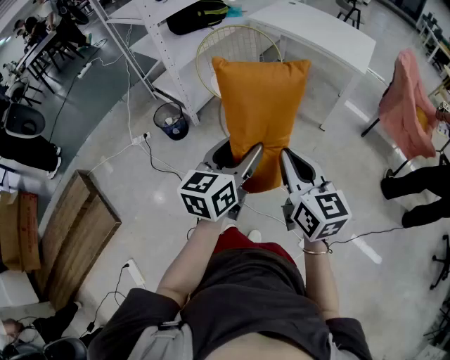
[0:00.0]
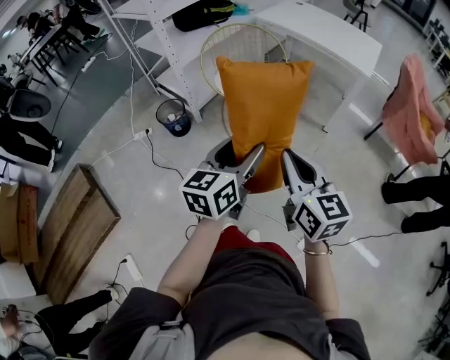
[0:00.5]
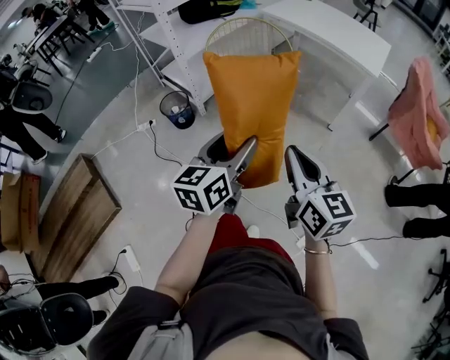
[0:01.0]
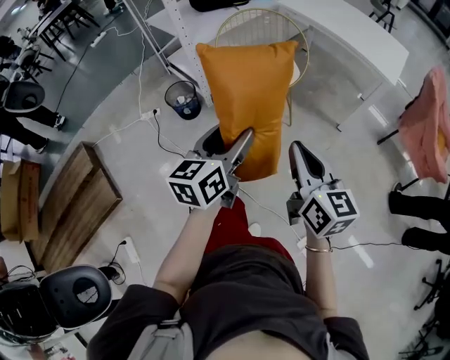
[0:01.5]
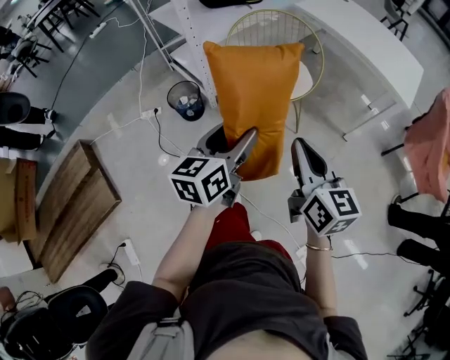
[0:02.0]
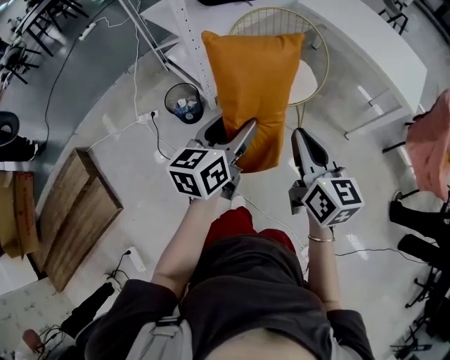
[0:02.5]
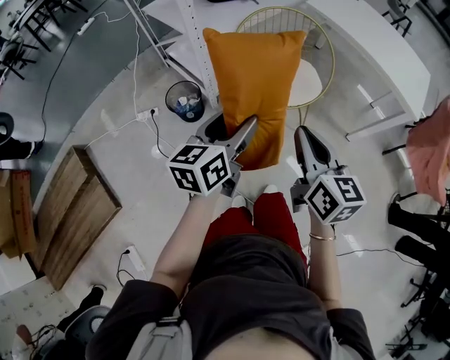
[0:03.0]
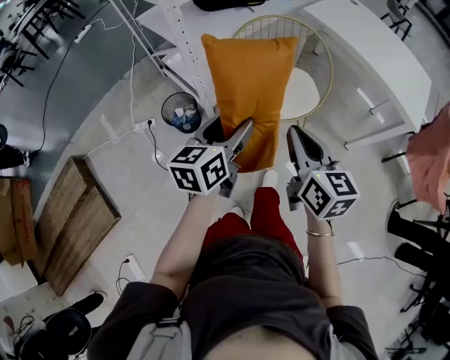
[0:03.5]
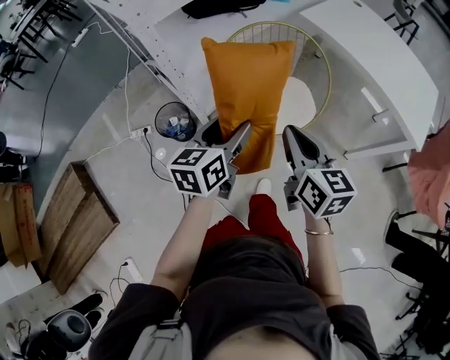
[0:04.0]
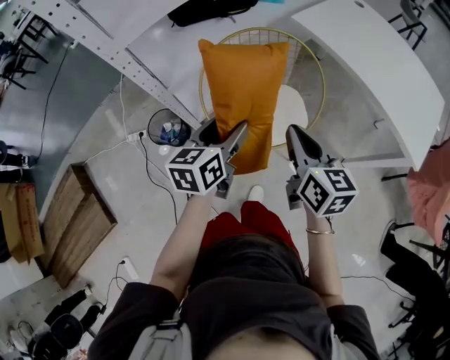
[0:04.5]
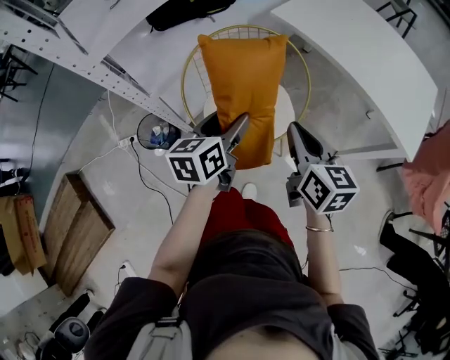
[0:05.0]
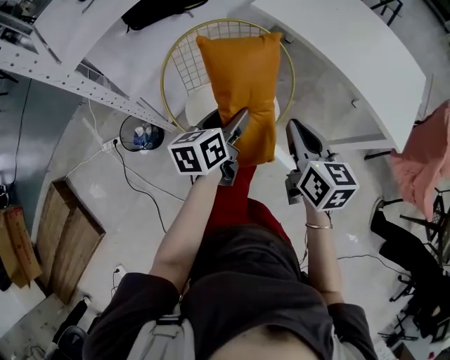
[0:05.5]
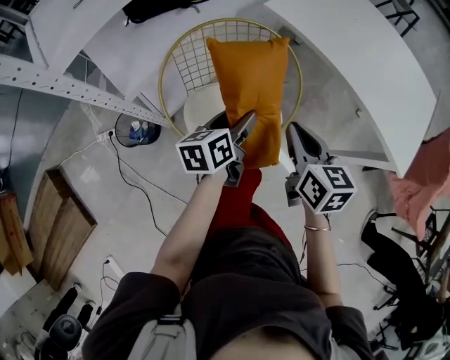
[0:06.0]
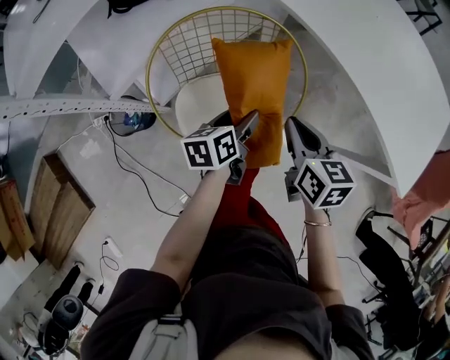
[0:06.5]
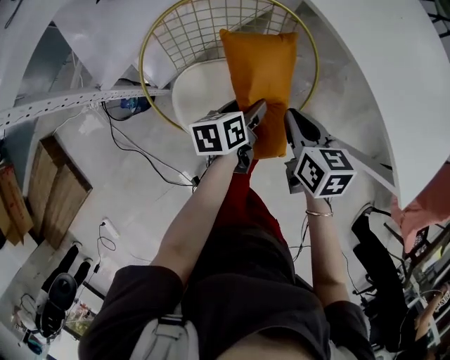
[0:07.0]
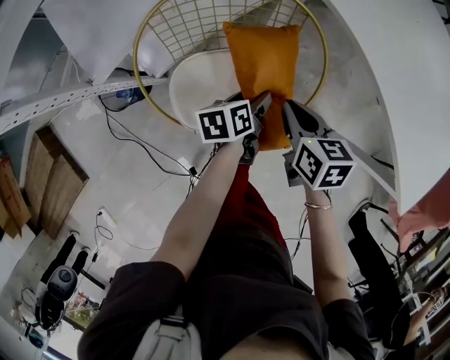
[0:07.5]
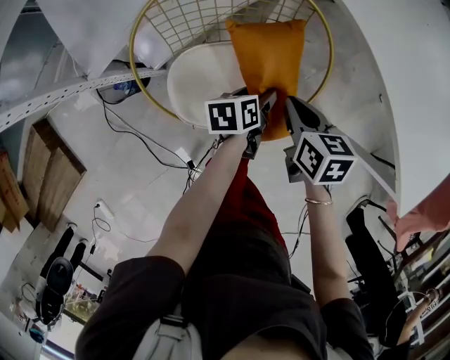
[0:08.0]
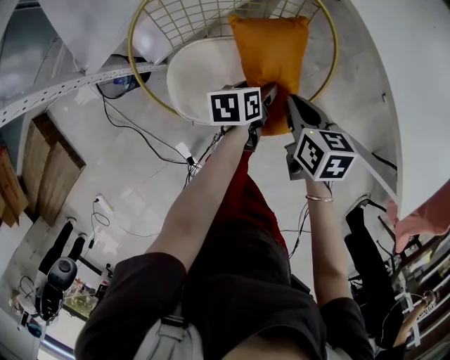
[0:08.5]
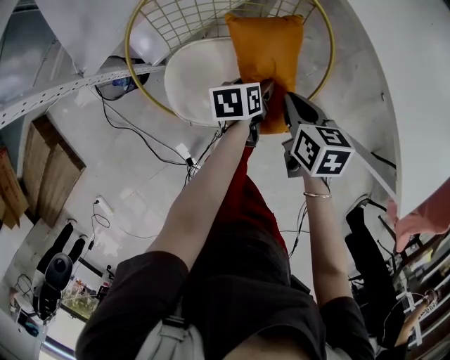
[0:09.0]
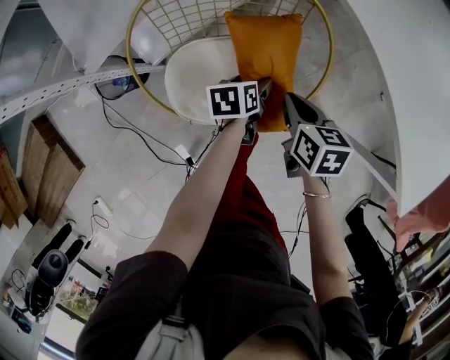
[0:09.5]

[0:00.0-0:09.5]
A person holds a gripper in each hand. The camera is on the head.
0:00.0 to 0:02.0: The left gripper travels forward and to the left by some 20 cm, while the right gripper heads forward, covering roughly 20 cm.
0:02.0 to 0:04.0: The two grippers go about 30 cm forward.
0:04.0 to 0:05.5: The right gripper heads to the right and forward, covering about 20 cm; the left gripper travels to the right, forward and downward by about 20 cm.
0:05.5 to 0:07.5: The two grippers go roughly 25 cm downward and forward. The right gripper rotates about 30 degrees. The left gripper turns by roughly 30 degrees.
0:07.5 to 0:09.5: The left gripper moves downward, some 5 cm.

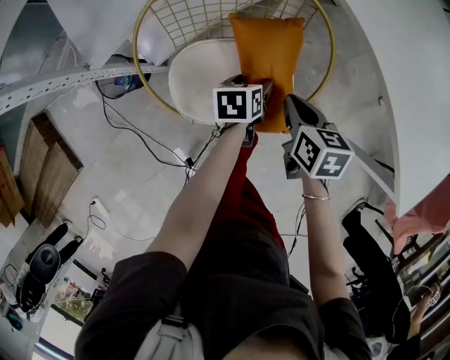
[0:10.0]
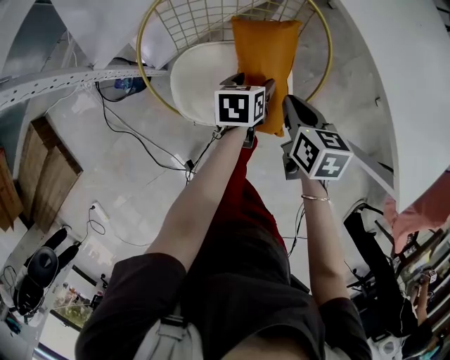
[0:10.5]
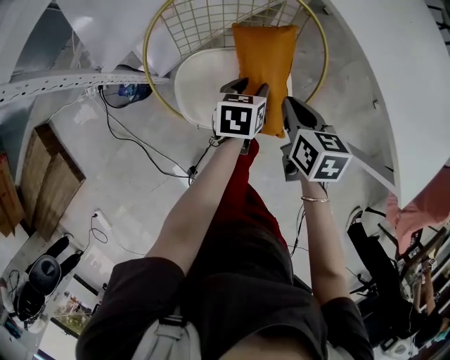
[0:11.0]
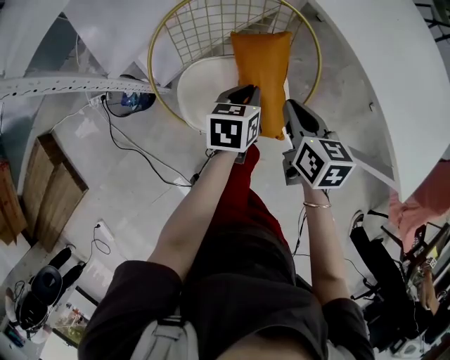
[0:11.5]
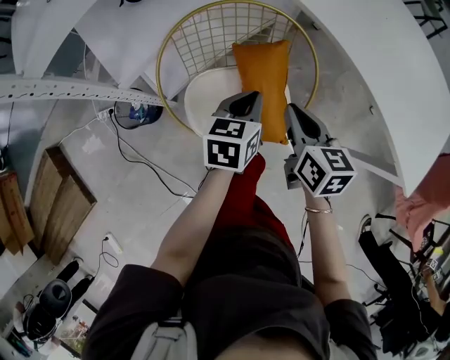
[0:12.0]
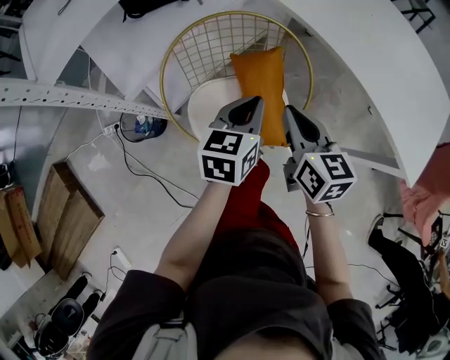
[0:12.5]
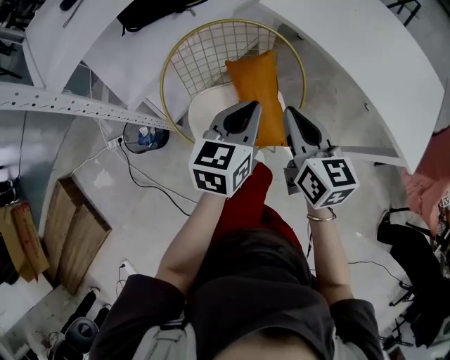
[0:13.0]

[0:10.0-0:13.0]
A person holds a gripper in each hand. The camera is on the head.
0:10.0 to 0:11.5: Both grippers travel together upward, about 10 cm. The left gripper closes its fingers.
0:11.5 to 0:13.0: The two grippers go roughly 15 cm upward. The left gripper turns by some 30 degrees. The right gripper swivels approximately 20 degrees.

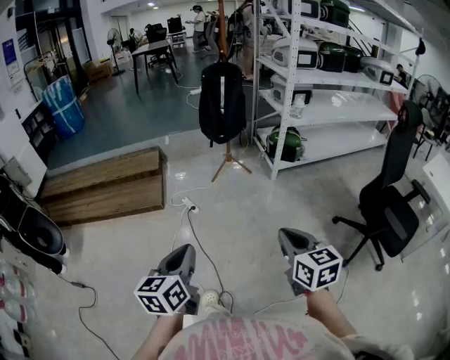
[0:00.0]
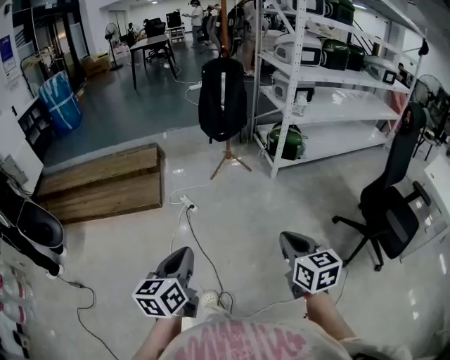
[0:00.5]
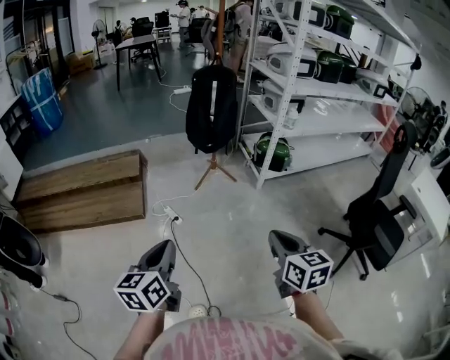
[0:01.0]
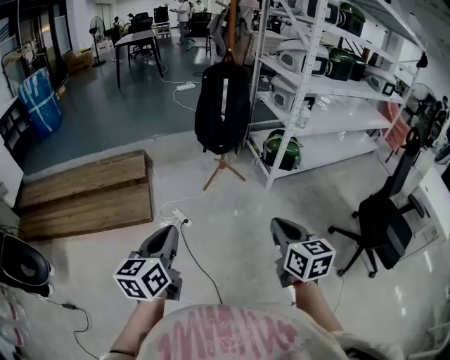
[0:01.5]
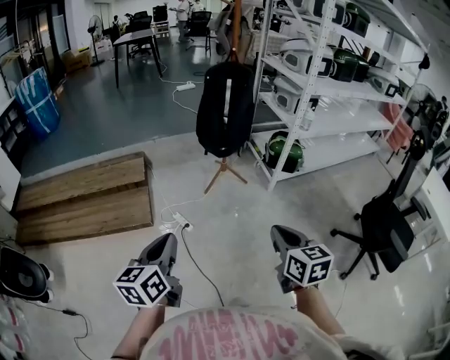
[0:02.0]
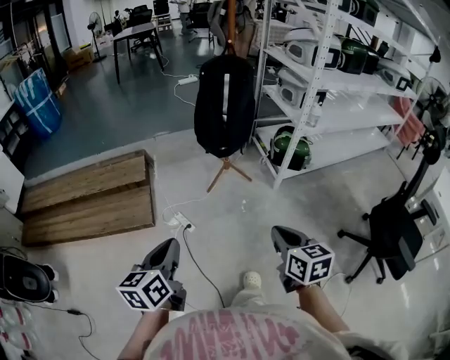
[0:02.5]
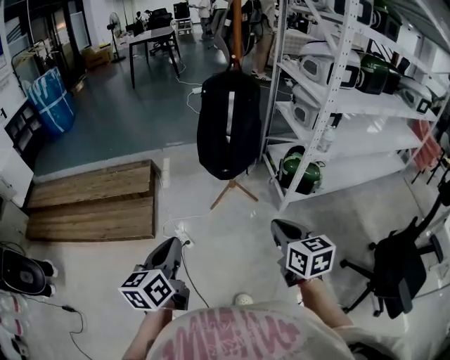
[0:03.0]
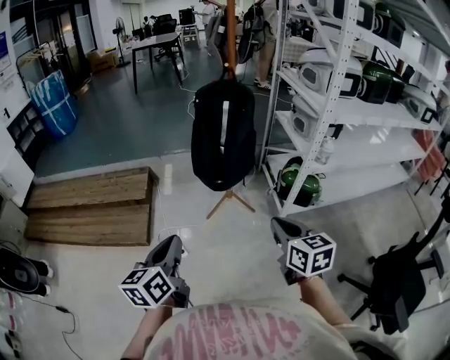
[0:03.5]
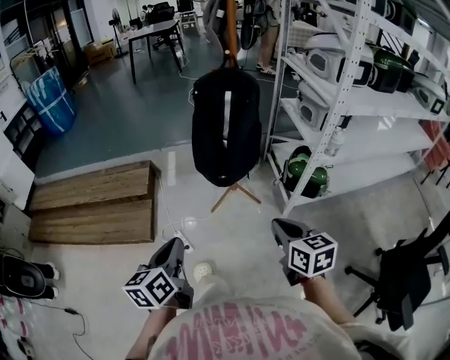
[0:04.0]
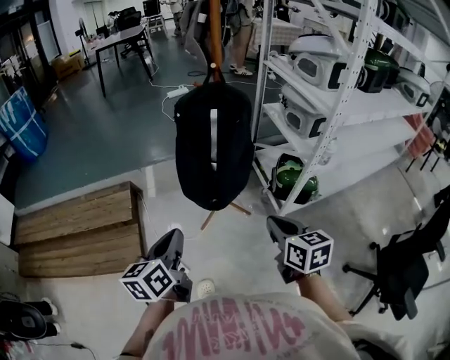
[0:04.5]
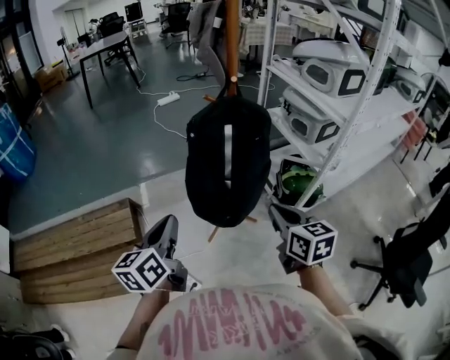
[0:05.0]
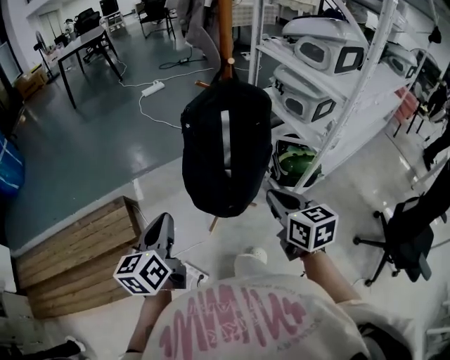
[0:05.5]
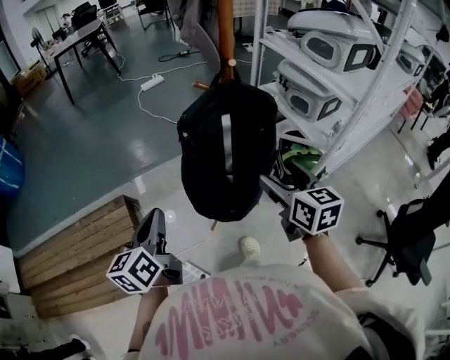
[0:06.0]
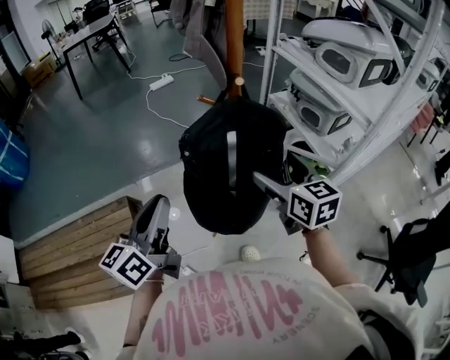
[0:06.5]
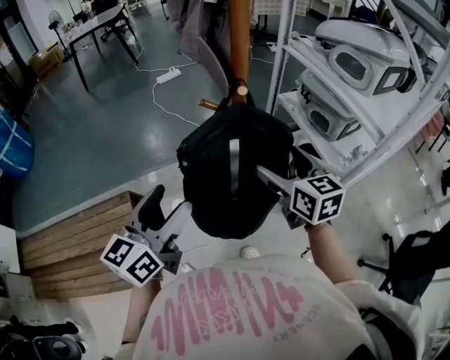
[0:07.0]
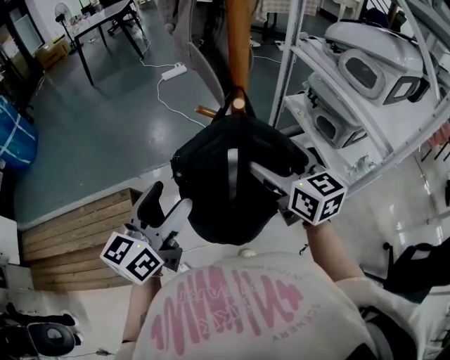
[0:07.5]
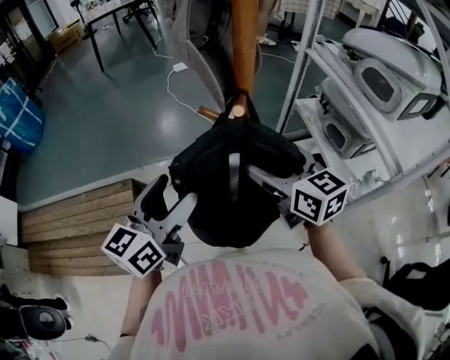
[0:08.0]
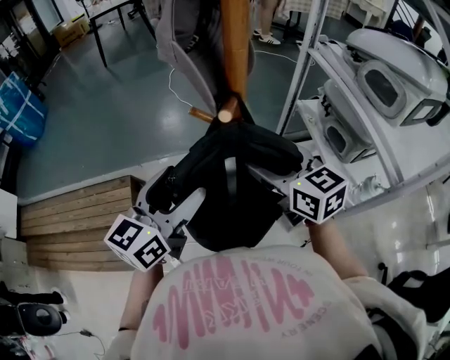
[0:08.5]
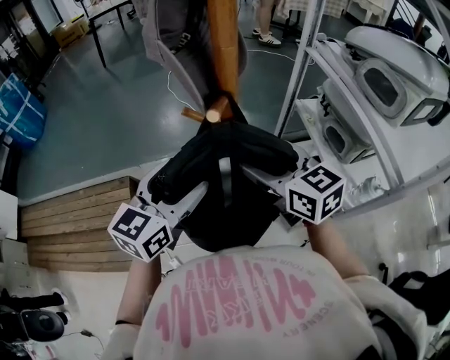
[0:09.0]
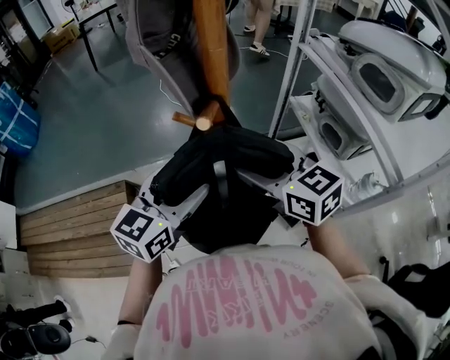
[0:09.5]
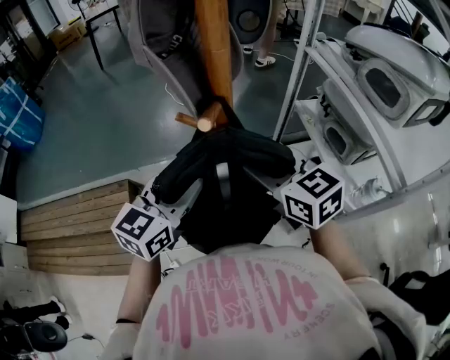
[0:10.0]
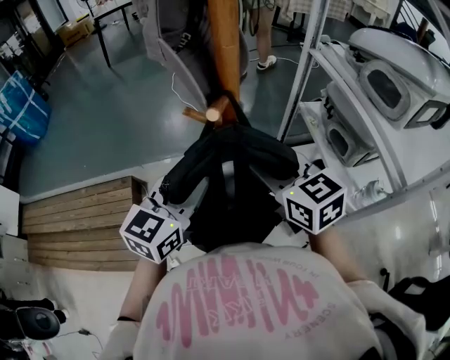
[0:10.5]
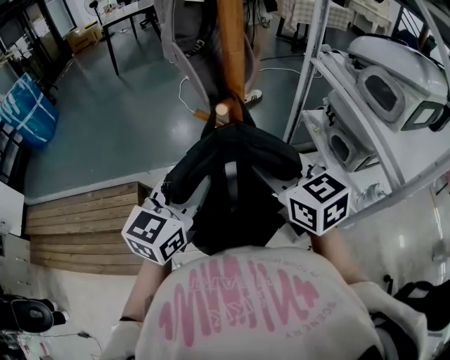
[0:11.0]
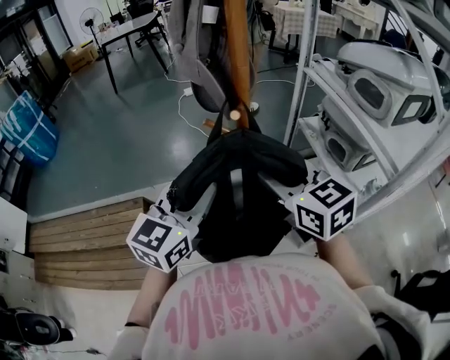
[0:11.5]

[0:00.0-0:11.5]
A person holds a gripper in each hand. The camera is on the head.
0:00.0 to 0:02.0: The two grippers go approximately 30 cm forward and to the left.
0:02.0 to 0:04.0: The two grippers go roughly 30 cm forward and to the right.
0:04.0 to 0:06.0: The two grippers go about 35 cm forward. The right gripper swivels roughly 20 degrees, and opens.
0:06.0 to 0:07.5: The left gripper heads forward, to the right and upward, covering about 15 cm, and opens up. The right gripper heads forward, covering some 15 cm.
0:07.5 to 0:09.5: The left gripper is displaced to the right and forward by approximately 10 cm.
0:09.5 to 0:11.5: The left gripper heads upward and backward, covering approximately 10 cm, and closes its fingers. The right gripper shifts approximately 10 cm backward and upward, and closes.

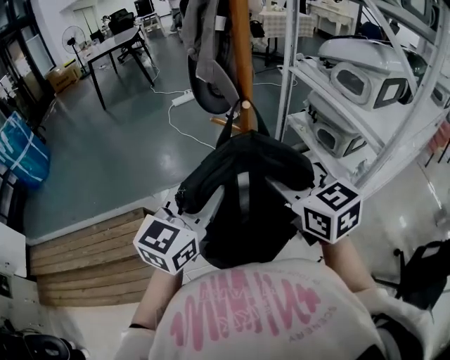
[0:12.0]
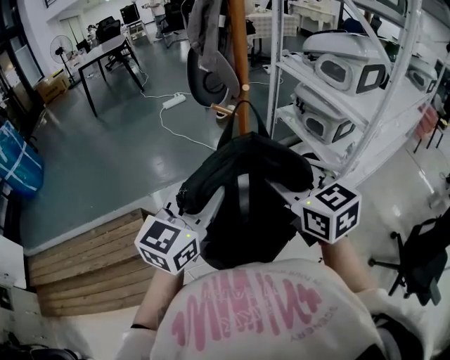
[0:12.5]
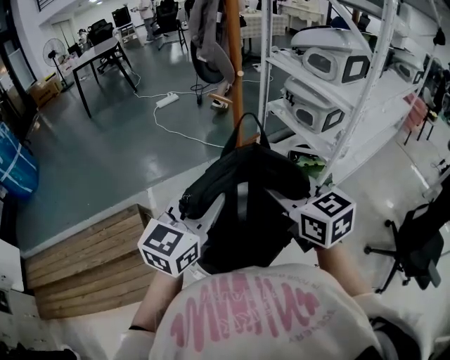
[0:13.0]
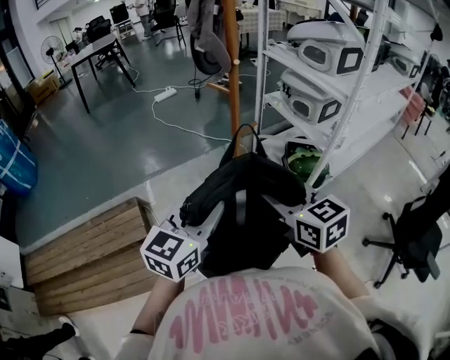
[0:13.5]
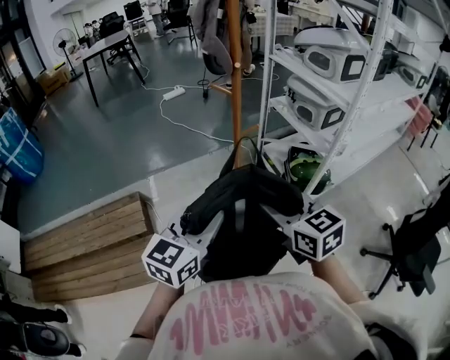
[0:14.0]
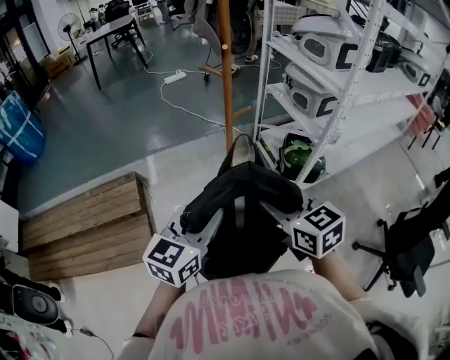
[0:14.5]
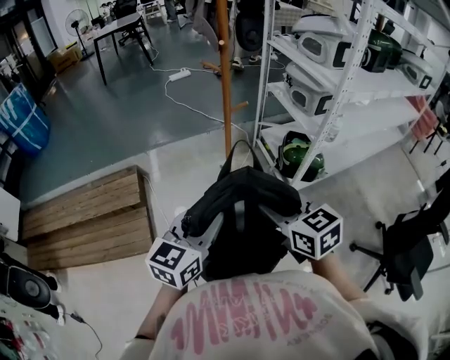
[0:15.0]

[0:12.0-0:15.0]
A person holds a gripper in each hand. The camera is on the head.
0:12.0 to 0:13.5: The grippers both shift backward by approximately 20 cm.
0:13.5 to 0:15.0: The two grippers go about 15 cm backward and to the right.
